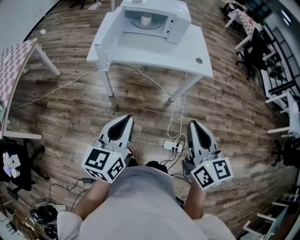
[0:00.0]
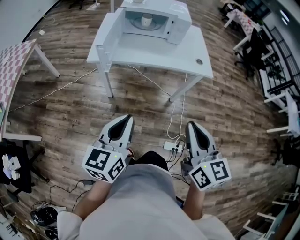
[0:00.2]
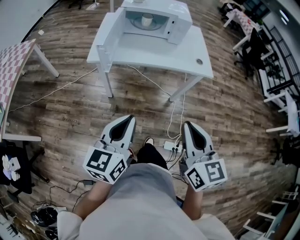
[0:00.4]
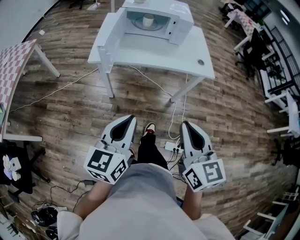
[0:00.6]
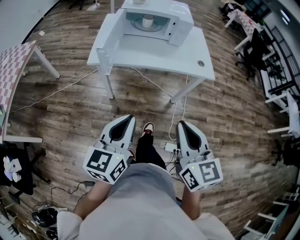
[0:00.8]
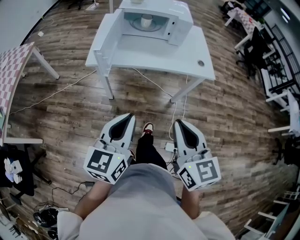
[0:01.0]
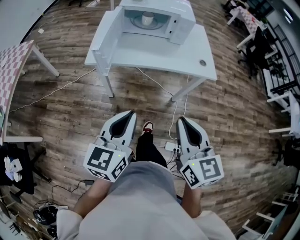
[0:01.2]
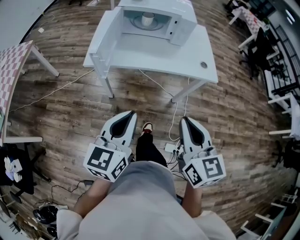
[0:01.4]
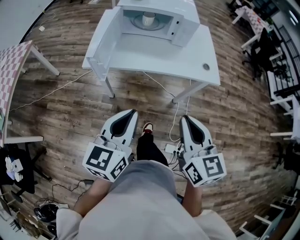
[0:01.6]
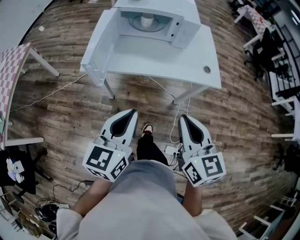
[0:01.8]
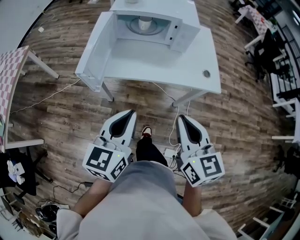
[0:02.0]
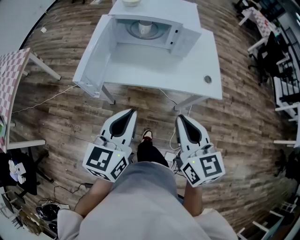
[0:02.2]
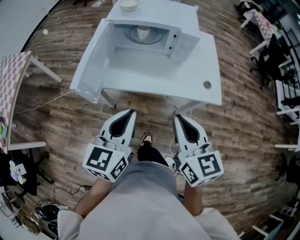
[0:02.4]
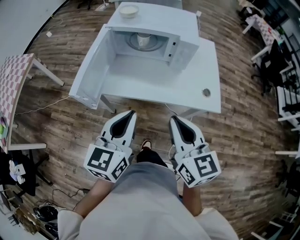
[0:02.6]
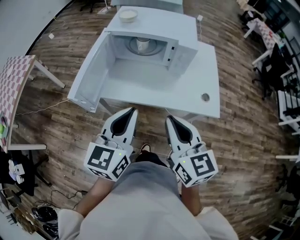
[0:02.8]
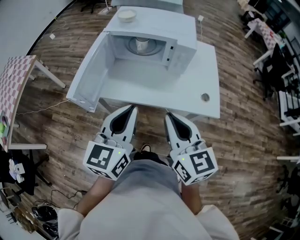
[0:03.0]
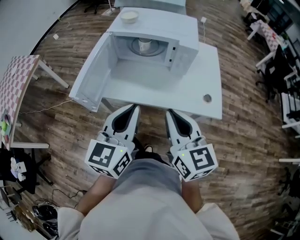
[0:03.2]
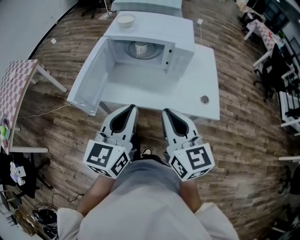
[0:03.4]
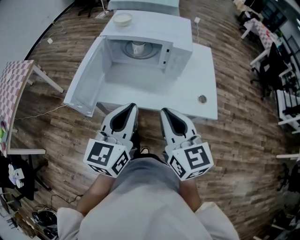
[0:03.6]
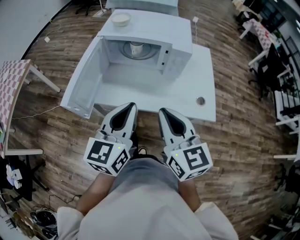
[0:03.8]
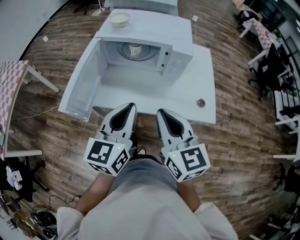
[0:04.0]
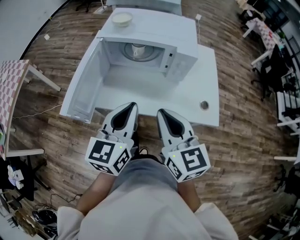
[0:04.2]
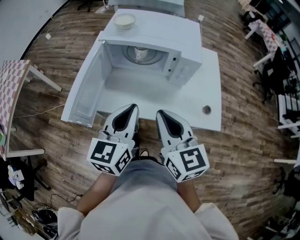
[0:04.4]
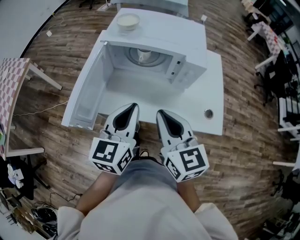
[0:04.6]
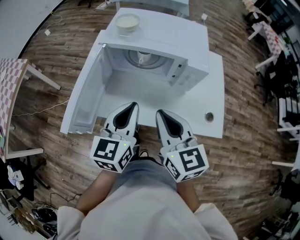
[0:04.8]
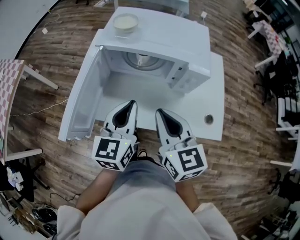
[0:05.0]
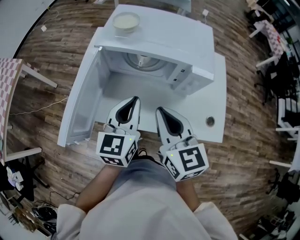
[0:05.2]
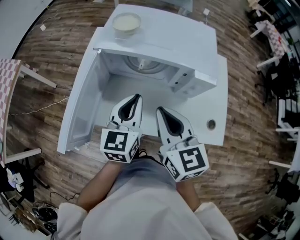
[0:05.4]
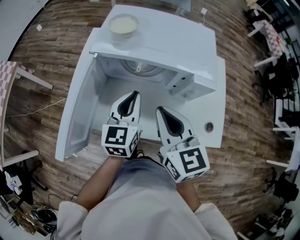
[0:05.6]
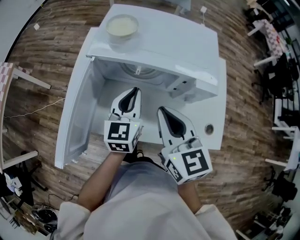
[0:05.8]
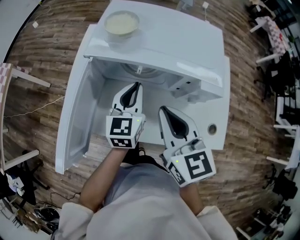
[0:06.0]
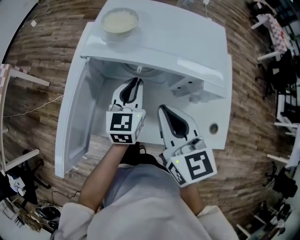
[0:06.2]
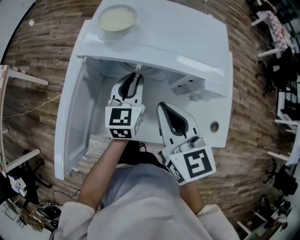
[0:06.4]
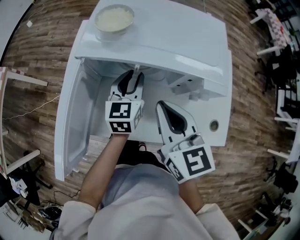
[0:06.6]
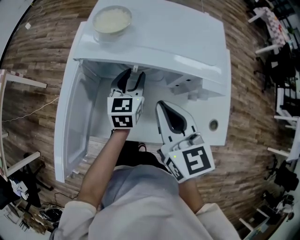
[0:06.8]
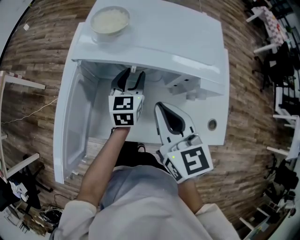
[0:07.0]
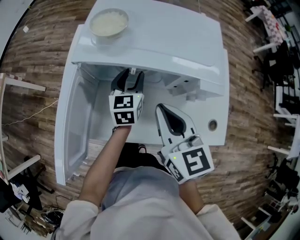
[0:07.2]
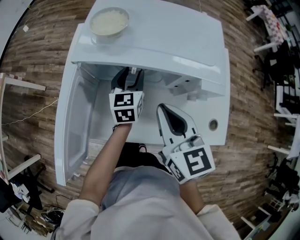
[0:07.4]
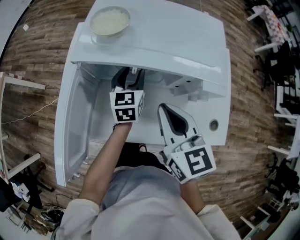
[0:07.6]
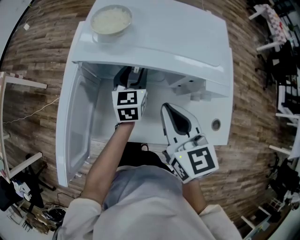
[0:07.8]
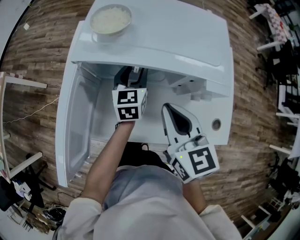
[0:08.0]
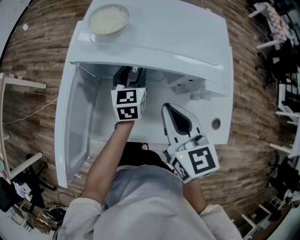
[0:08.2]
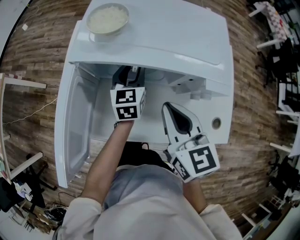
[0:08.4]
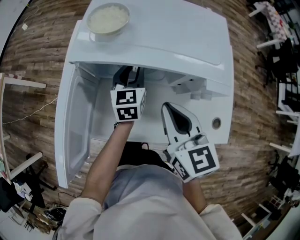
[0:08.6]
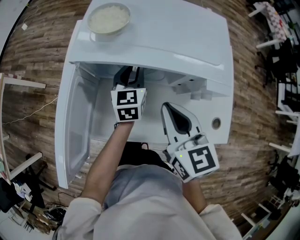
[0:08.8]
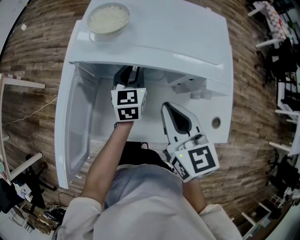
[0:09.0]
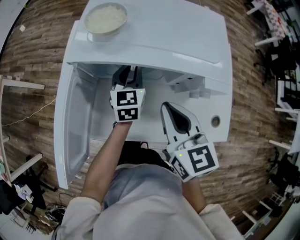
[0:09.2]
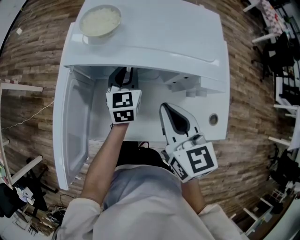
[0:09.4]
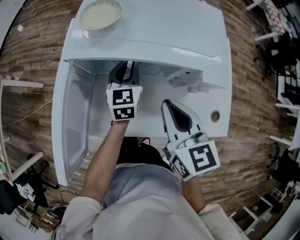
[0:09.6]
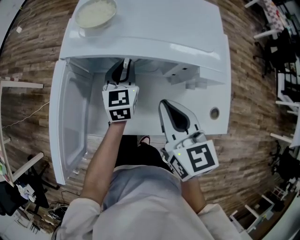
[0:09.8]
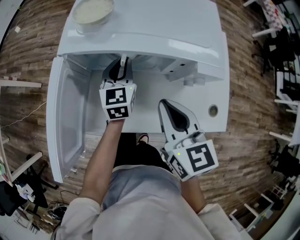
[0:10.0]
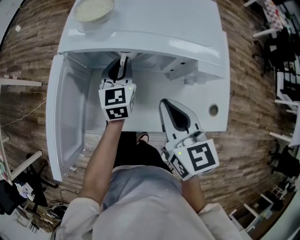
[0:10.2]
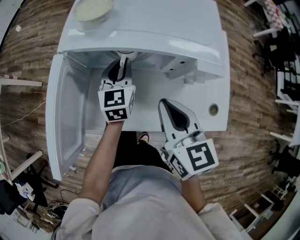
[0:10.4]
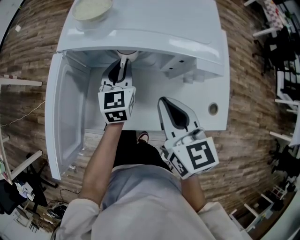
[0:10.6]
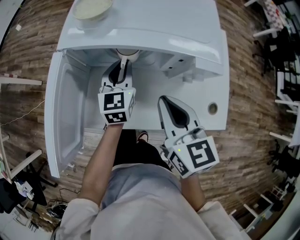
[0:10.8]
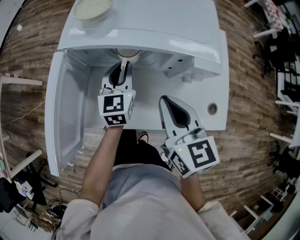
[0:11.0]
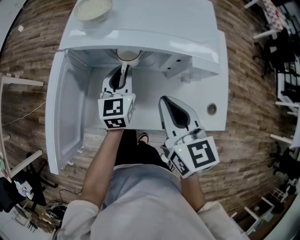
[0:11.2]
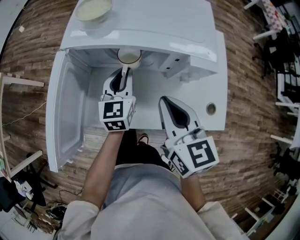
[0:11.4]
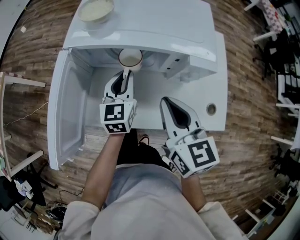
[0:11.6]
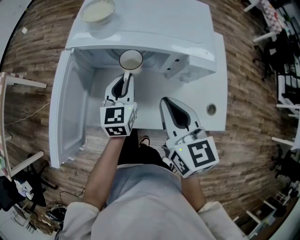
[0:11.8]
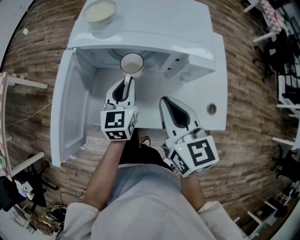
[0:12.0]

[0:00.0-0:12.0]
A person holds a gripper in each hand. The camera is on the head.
0.0 to 1.6 s: Both grippers travel together forward, about 10 cm.
1.6 to 3.0 s: The left gripper travels forward and to the right by roughly 20 cm, while the right gripper is displaced forward by some 20 cm.
3.0 to 4.4 s: The grippers both shift forward by some 10 cm.
4.4 to 6.0 s: The left gripper moves forward and downward, roughly 25 cm, while the right gripper heads forward, covering approximately 15 cm.
6.0 to 7.6 s: The left gripper heads forward and downward, covering roughly 10 cm, and opens up.
7.6 to 9.0 s: The left gripper closes.
9.0 to 10.4 s: The grippers move only a little.
10.4 to 12.0 s: The left gripper travels backward by about 10 cm.

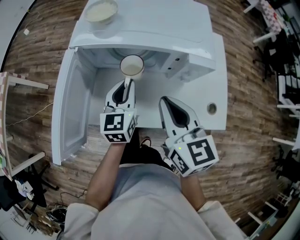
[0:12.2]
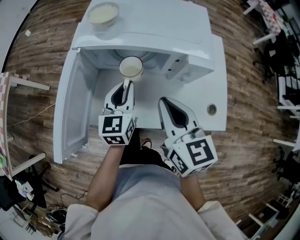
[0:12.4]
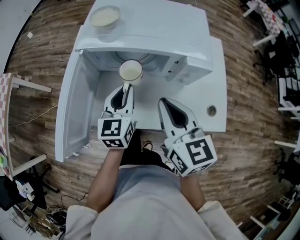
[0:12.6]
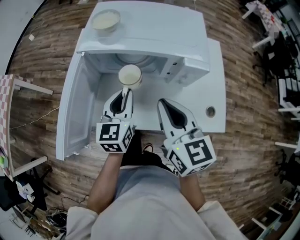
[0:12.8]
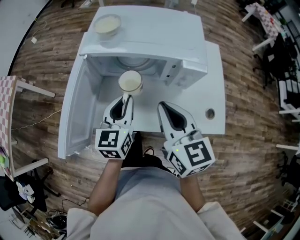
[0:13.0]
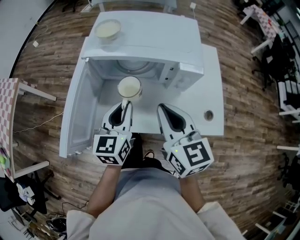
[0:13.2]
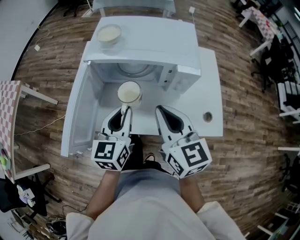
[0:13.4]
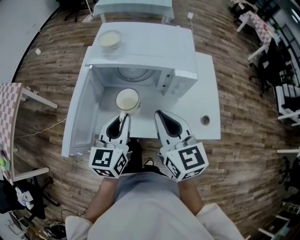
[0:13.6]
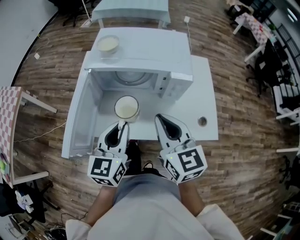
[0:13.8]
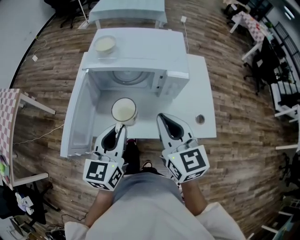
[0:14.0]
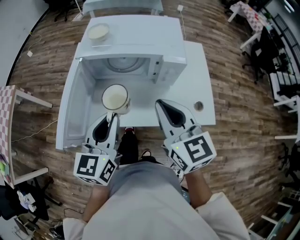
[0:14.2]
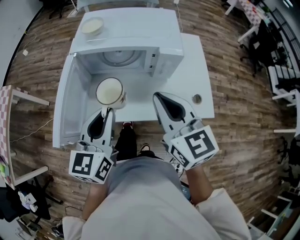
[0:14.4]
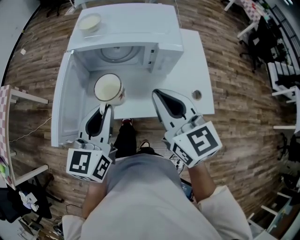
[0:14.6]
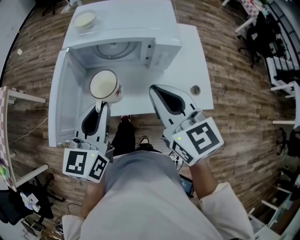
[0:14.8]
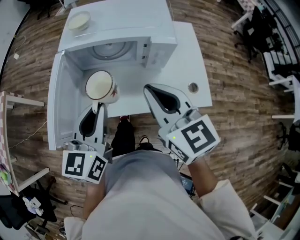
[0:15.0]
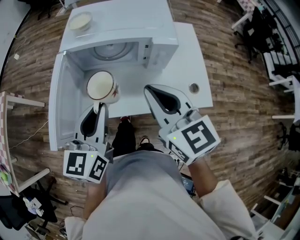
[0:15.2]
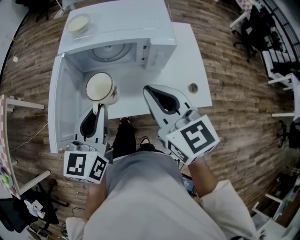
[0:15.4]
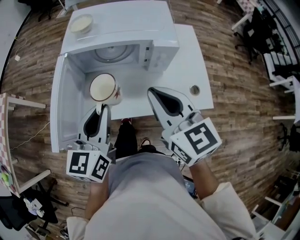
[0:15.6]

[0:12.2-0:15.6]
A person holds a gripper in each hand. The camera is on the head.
12.2 to 13.8 s: The right gripper travels backward and upward by roughly 10 cm; the left gripper travels backward and upward by approximately 20 cm.
13.8 to 15.6 s: The grippers make only small movements.

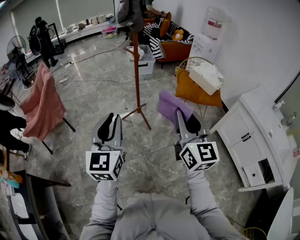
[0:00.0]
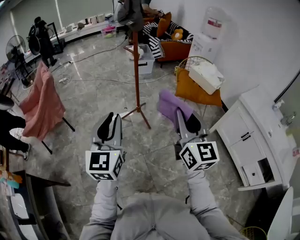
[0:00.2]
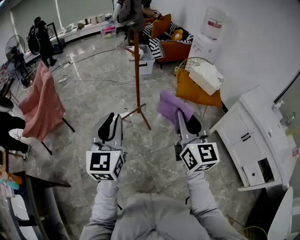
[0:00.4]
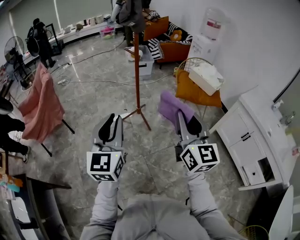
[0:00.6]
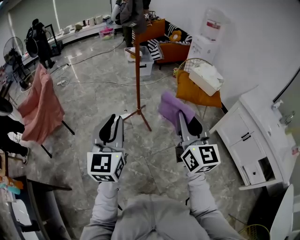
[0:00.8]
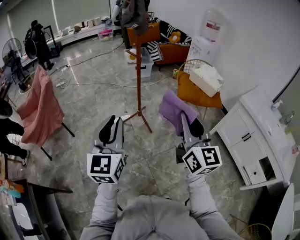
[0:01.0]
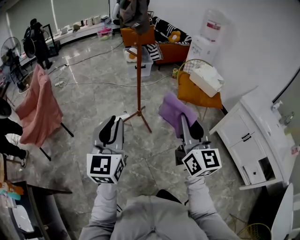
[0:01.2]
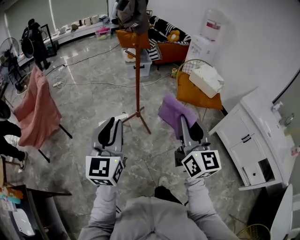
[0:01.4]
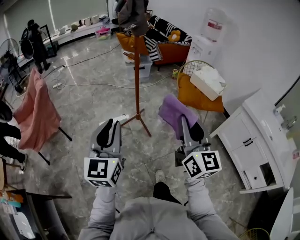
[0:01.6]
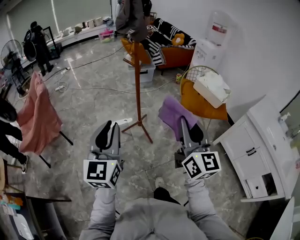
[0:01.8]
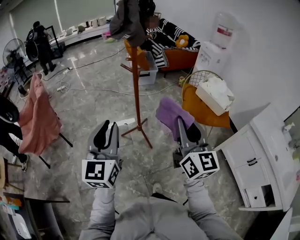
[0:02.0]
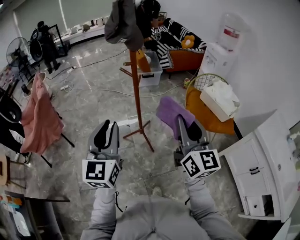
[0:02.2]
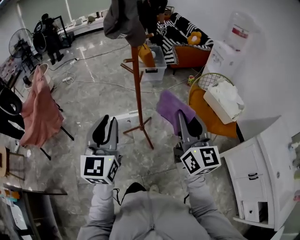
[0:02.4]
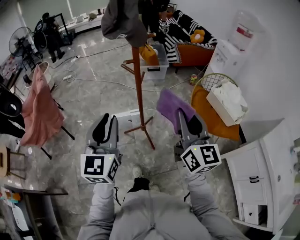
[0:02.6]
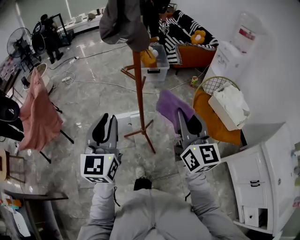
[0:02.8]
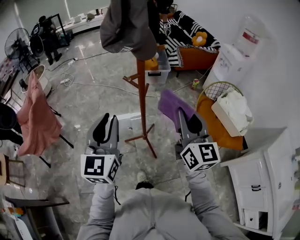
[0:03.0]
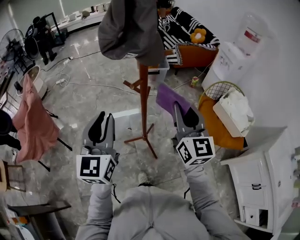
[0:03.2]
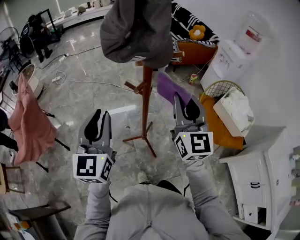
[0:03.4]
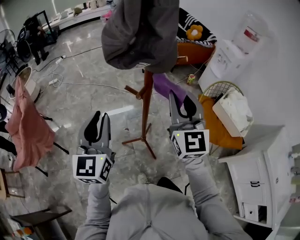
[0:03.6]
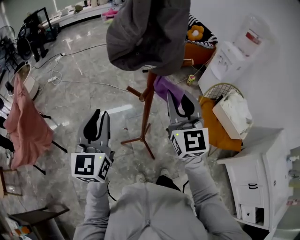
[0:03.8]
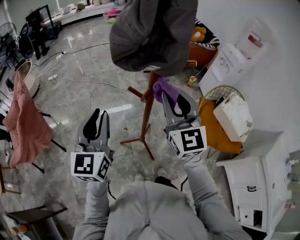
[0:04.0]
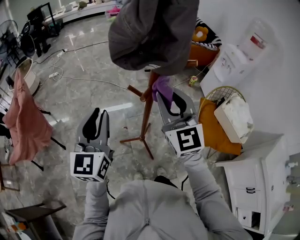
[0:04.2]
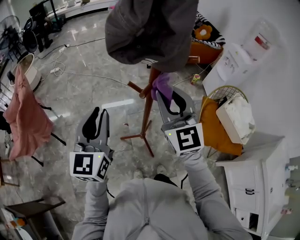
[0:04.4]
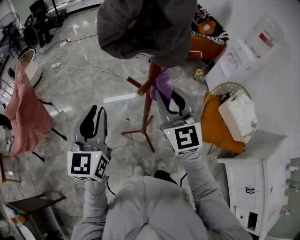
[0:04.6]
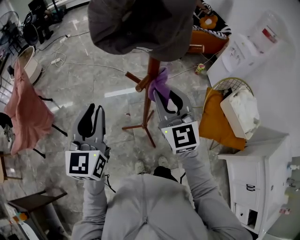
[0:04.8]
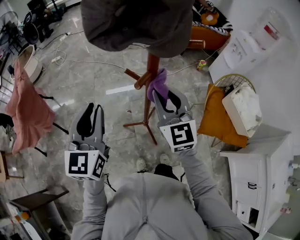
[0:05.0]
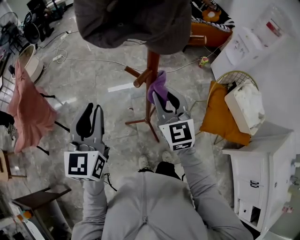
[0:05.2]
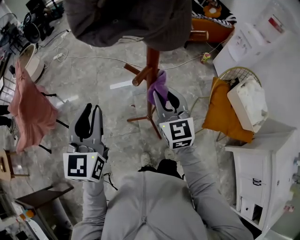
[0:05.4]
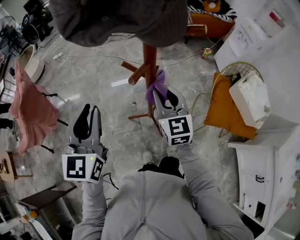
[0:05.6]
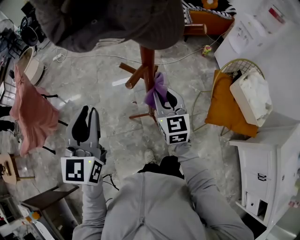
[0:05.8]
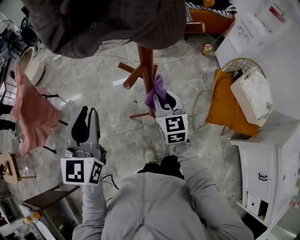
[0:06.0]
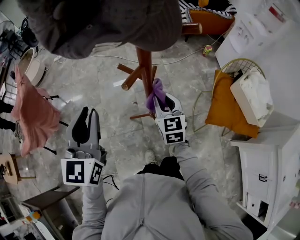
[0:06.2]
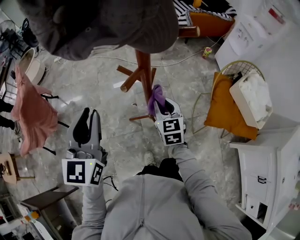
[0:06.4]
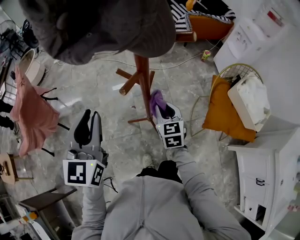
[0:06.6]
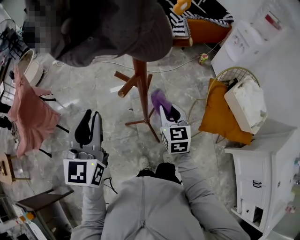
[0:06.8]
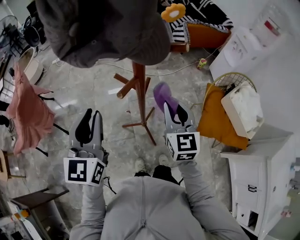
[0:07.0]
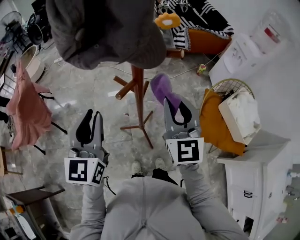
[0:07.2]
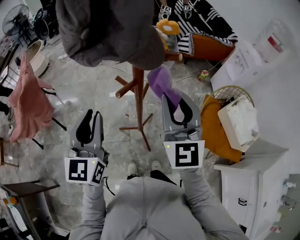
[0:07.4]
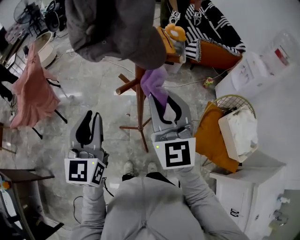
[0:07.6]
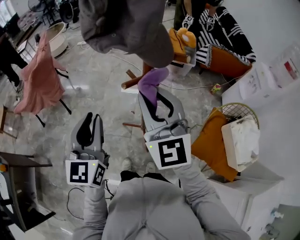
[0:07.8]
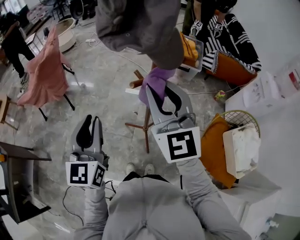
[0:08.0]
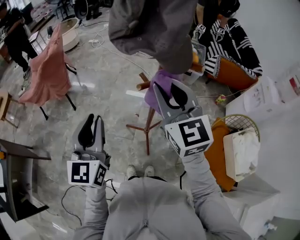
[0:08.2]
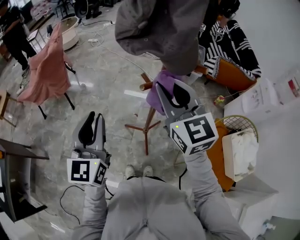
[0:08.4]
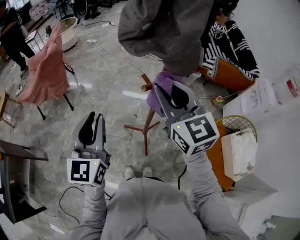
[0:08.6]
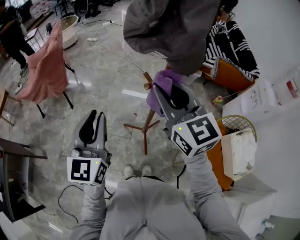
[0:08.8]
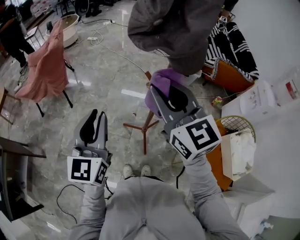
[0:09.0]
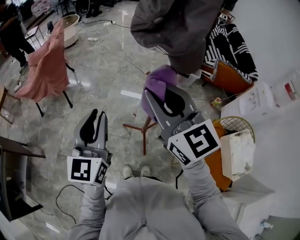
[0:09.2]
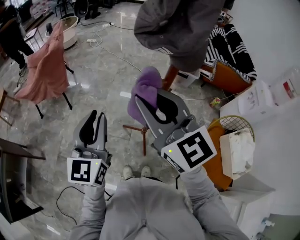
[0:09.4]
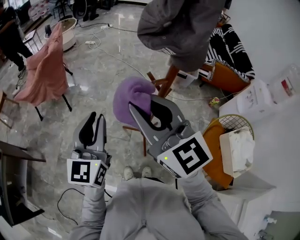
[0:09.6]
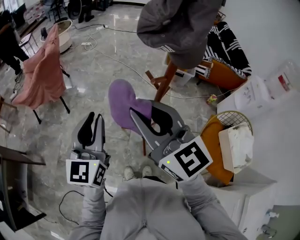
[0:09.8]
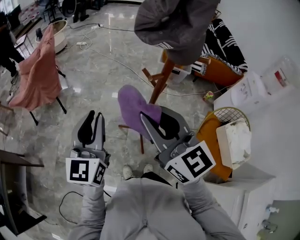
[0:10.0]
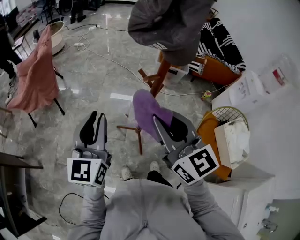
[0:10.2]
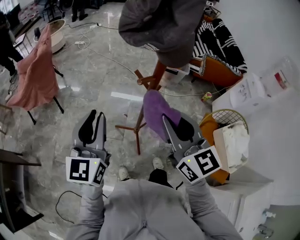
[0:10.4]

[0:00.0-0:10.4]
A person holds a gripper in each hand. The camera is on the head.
0.0 to 1.4 s: The right gripper moves approximately 5 cm, while the left gripper heads to the left and forward, covering about 5 cm.
1.4 to 3.0 s: Both grippers move forward, approximately 40 cm.
3.0 to 4.4 s: The grippers both shift forward and to the left by approximately 15 cm. The right gripper swivels approximately 30 degrees.
4.4 to 6.0 s: The right gripper is displaced downward by some 20 cm, and changes its angle by some 30 degrees.
6.0 to 7.4 s: The left gripper shifts about 5 cm to the right. Meanwhile the right gripper goes approximately 20 cm upward, and changes its angle by about 30 degrees.
7.4 to 9.0 s: The left gripper changes place by roughly 10 cm. The right gripper changes place by about 15 cm, and changes its angle by some 40 degrees.
9.0 to 10.4 s: The right gripper goes about 10 cm backward and to the right.
